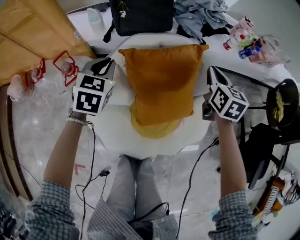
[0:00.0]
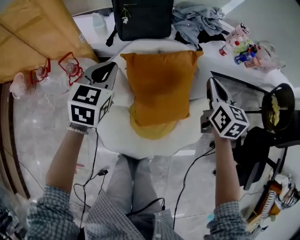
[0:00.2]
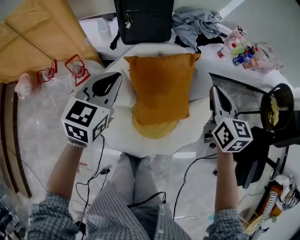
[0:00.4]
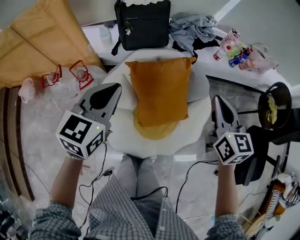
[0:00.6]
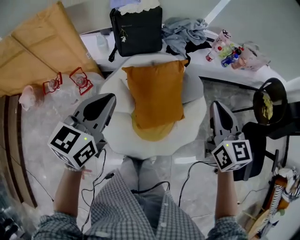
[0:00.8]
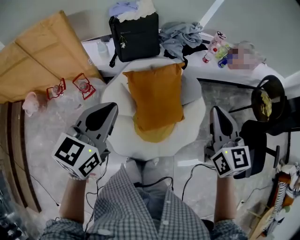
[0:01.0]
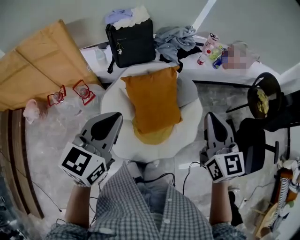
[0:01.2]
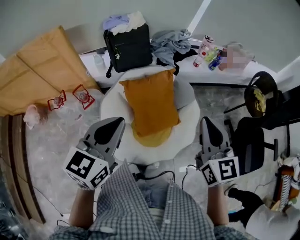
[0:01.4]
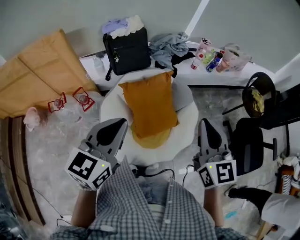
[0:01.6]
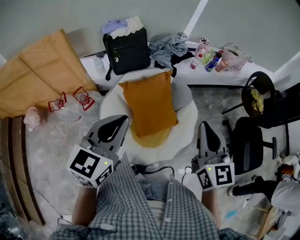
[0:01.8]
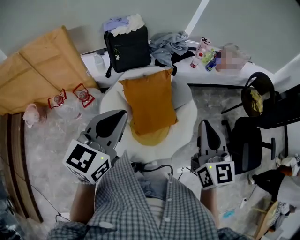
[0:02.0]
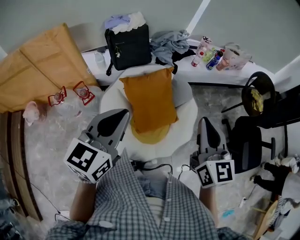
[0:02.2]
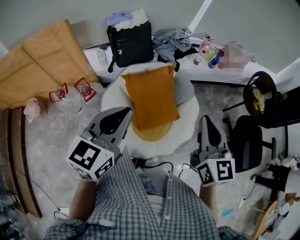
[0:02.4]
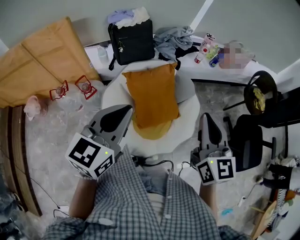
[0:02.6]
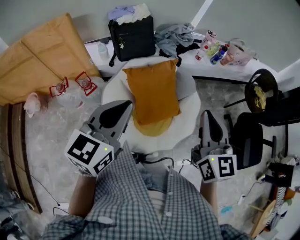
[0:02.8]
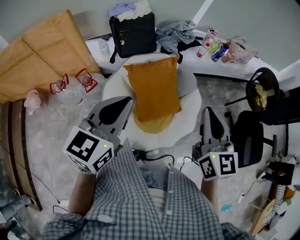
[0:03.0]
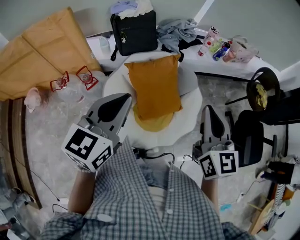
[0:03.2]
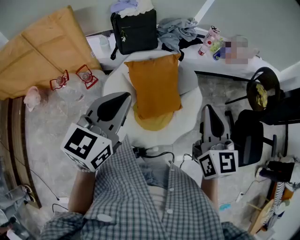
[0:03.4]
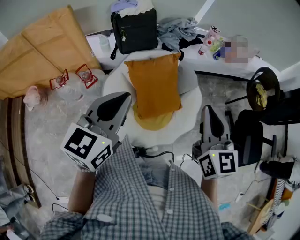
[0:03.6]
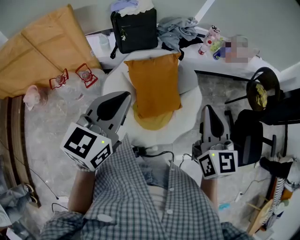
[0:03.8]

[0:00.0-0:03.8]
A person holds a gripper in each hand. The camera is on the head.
0:00.0 to 0:01.2: Both grippers move upward and backward, some 40 cm. The right gripper changes its angle by some 20 degrees; the left gripper turns by about 30 degrees.
0:01.2 to 0:02.6: The right gripper shifts approximately 5 cm backward. Meanwhile the left gripper ends up some 5 cm from where it was.
0:02.6 to 0:03.8: Both grippers stay about where they are.

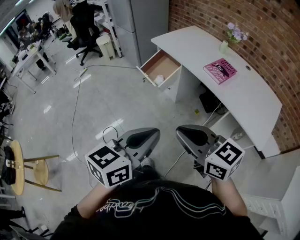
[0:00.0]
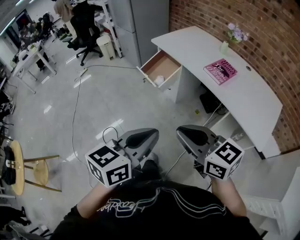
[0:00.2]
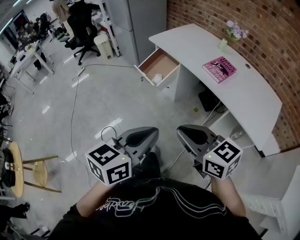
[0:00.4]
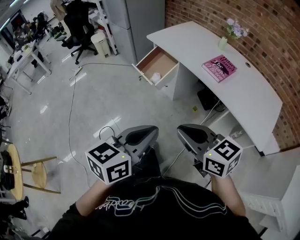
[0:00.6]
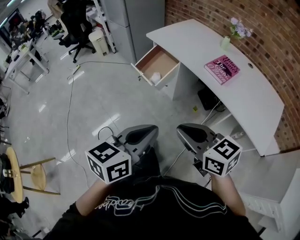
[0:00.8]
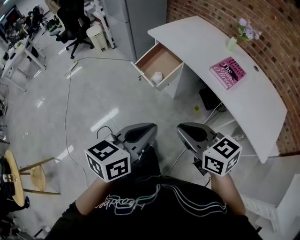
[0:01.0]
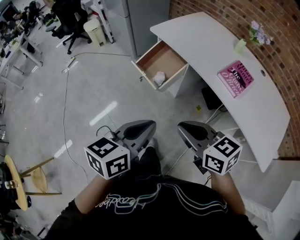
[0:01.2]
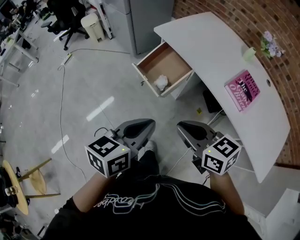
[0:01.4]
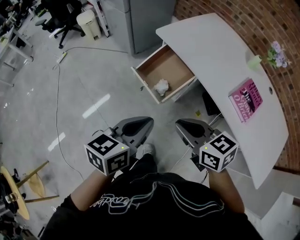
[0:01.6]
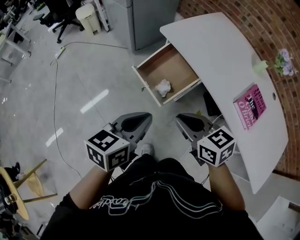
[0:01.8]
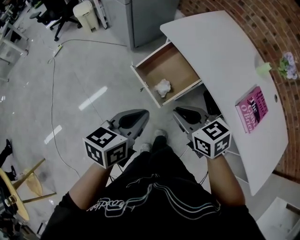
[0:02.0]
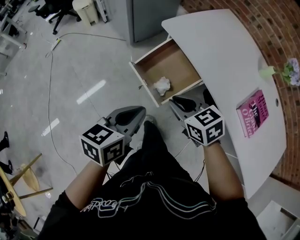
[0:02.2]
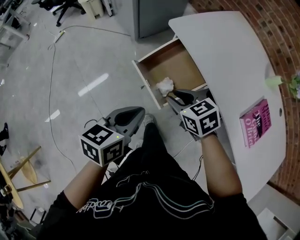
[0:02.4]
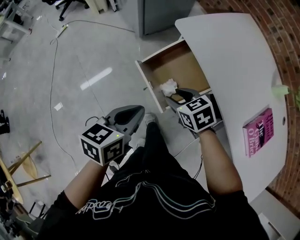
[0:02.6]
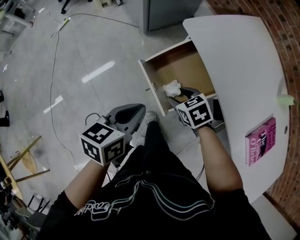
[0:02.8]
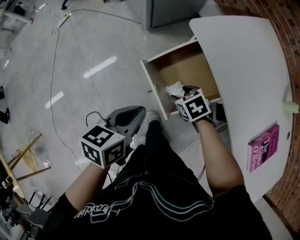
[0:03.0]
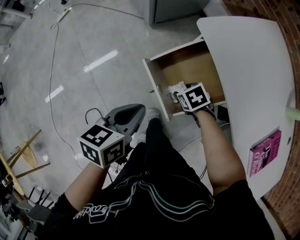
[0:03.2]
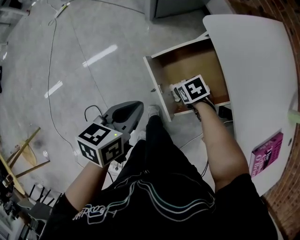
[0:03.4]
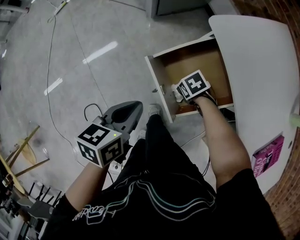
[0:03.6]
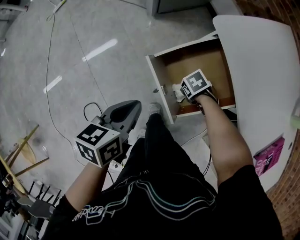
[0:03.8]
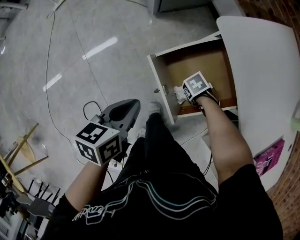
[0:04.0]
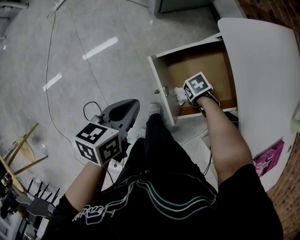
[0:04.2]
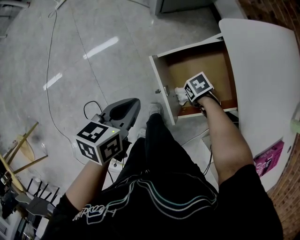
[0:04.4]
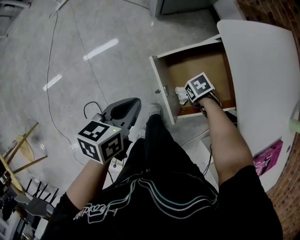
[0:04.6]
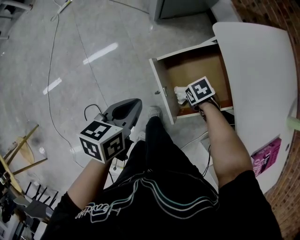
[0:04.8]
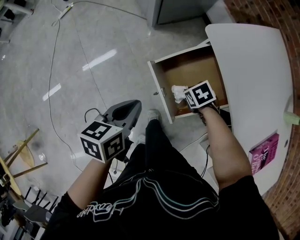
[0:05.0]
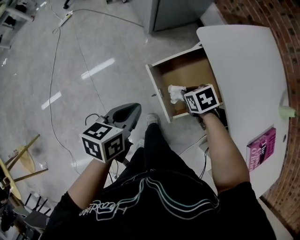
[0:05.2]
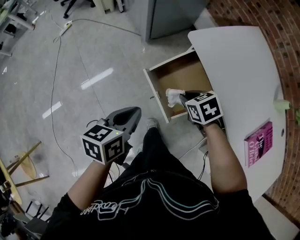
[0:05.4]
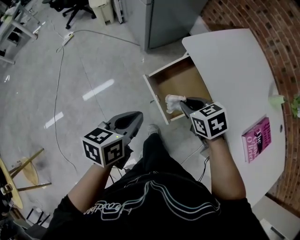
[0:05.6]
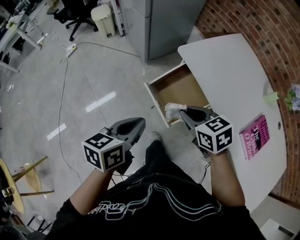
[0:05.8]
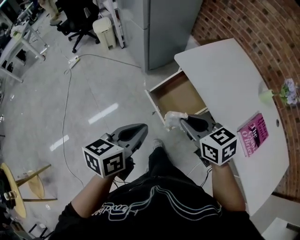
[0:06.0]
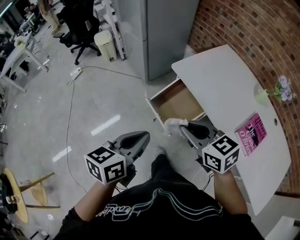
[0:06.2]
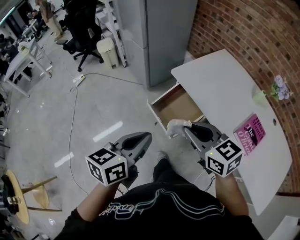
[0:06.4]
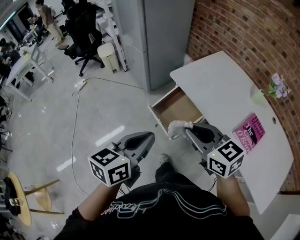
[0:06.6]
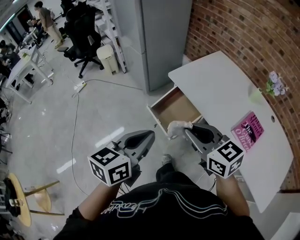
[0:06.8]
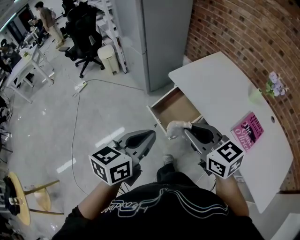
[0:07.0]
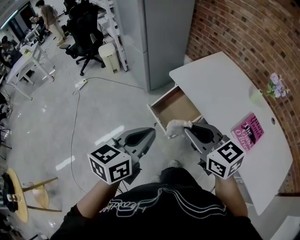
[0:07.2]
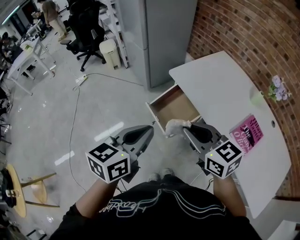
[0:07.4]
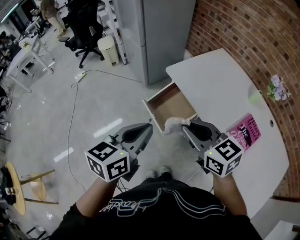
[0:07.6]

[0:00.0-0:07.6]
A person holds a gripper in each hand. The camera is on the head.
0:00.0 to 0:01.6: The two grippers travel together, forward, approximately 40 cm. The right gripper turns by roughly 20 degrees.
0:01.6 to 0:03.0: The right gripper shifts approximately 40 cm downward and forward, angles its fingers downward, by about 40 degrees, and opens up. The left gripper goes some 25 cm forward and downward, and swivels about 20 degrees.
0:03.0 to 0:04.6: The left gripper shifts roughly 5 cm downward. The right gripper travels downward by some 15 cm, turns by roughly 30 degrees, and closes up.
0:04.6 to 0:06.0: The left gripper travels upward by roughly 25 cm, and rotates roughly 20 degrees. Meanwhile the right gripper goes about 50 cm upward, and angles its fingers upward, by roughly 40 degrees.
0:06.0 to 0:07.6: The left gripper heads upward and to the right, covering approximately 15 cm, while the right gripper shifts approximately 15 cm upward, backward and to the right.

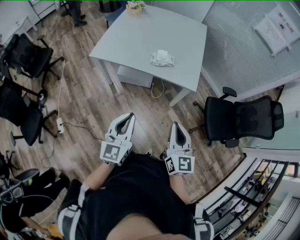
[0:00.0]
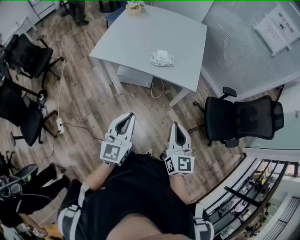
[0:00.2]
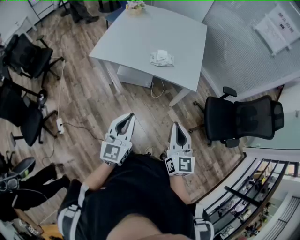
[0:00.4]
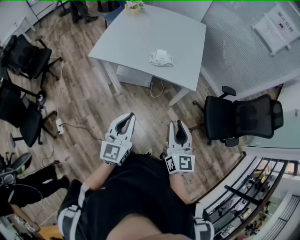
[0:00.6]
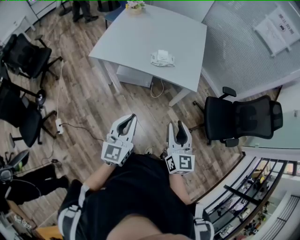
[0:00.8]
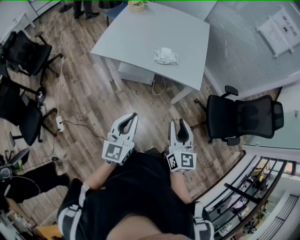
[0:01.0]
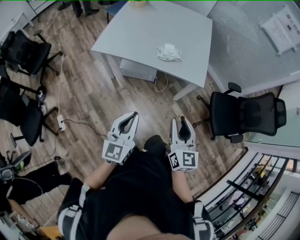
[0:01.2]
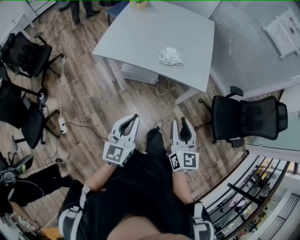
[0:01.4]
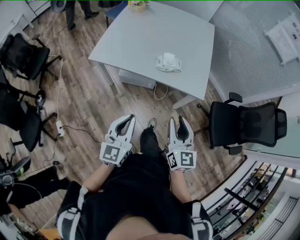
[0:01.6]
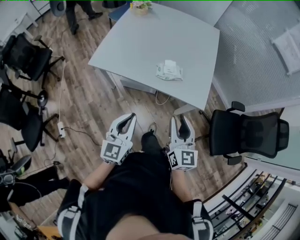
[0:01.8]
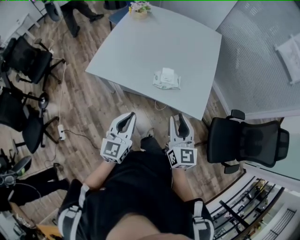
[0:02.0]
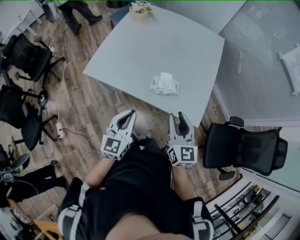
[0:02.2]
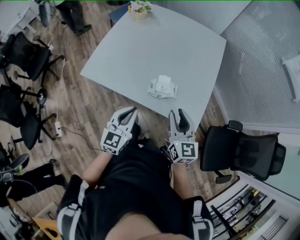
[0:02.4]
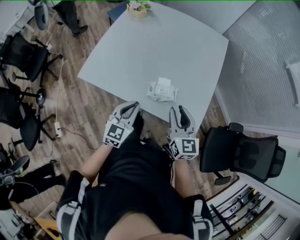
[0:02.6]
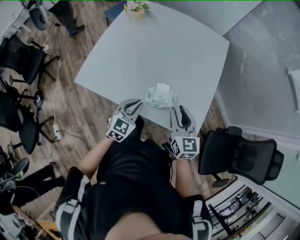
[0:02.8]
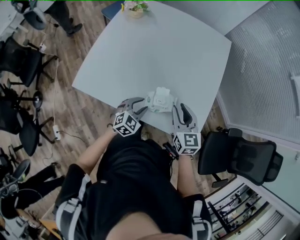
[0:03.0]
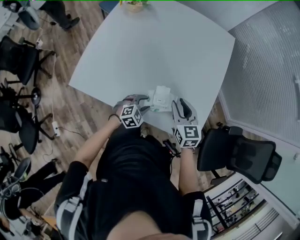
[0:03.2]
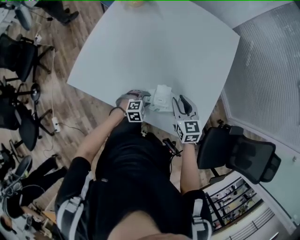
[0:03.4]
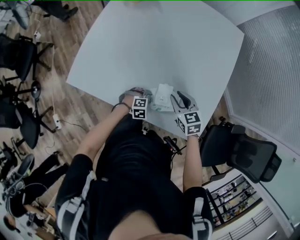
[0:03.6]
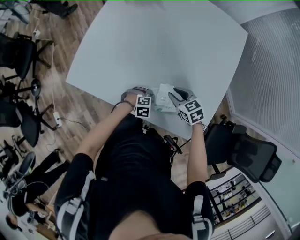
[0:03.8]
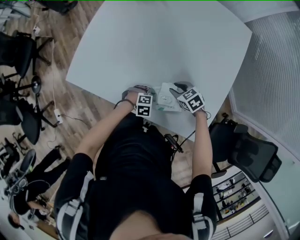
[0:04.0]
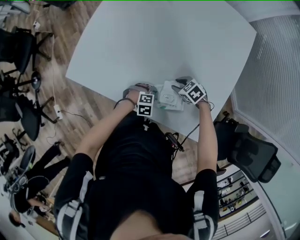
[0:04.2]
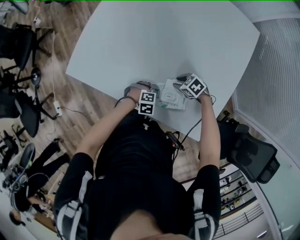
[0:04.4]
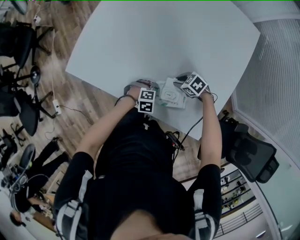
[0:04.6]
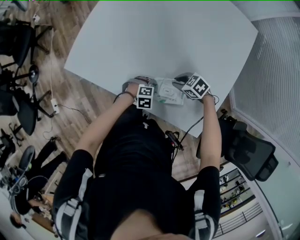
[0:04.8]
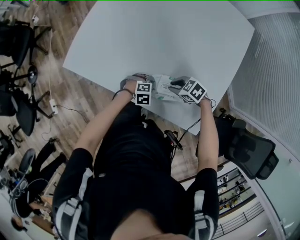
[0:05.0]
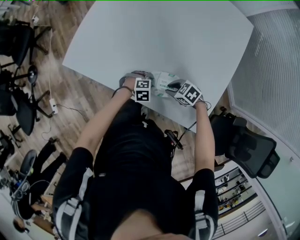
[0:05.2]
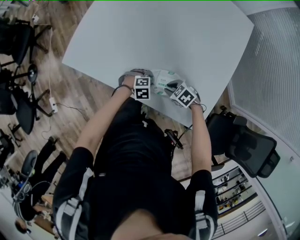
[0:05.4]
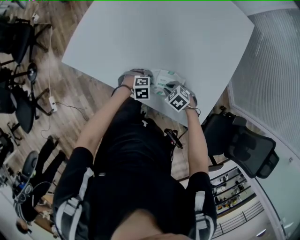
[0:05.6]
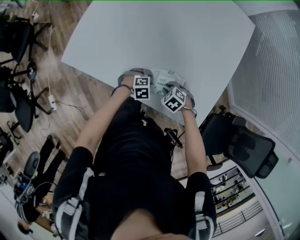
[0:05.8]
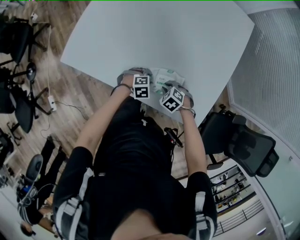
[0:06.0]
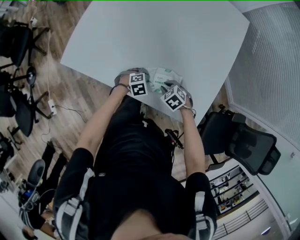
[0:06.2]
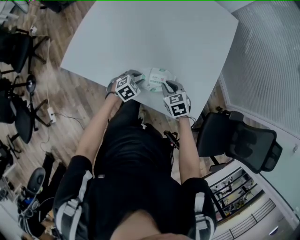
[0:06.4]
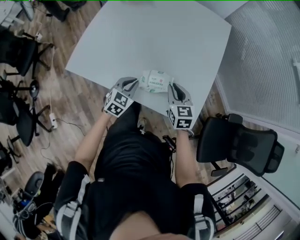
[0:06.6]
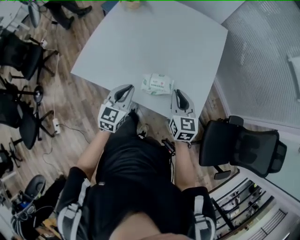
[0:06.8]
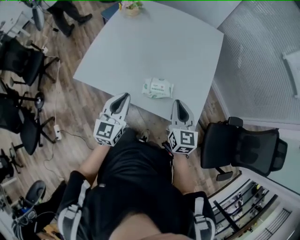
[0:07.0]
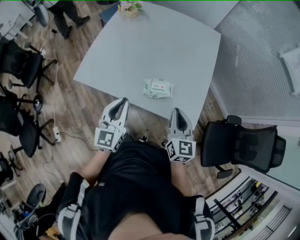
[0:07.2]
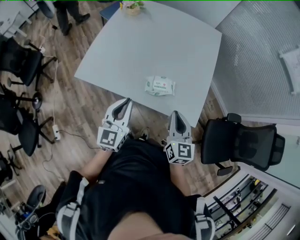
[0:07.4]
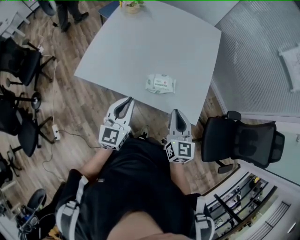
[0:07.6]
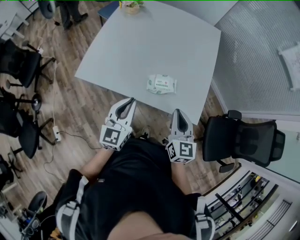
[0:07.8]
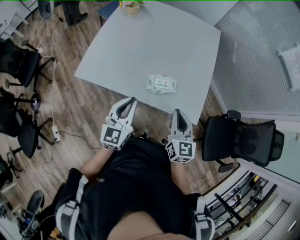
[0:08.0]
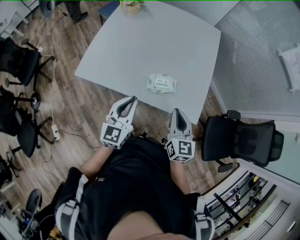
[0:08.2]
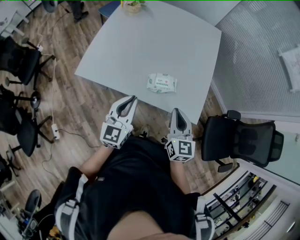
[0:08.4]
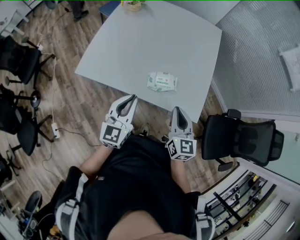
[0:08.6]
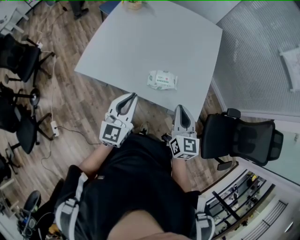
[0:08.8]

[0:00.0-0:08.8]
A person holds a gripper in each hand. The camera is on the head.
0:00.0 to 0:01.4: The right gripper shifts approximately 10 cm to the left and forward, and opens, while the left gripper travels to the left by roughly 5 cm.
0:01.4 to 0:03.0: The pair of grippers is taken forward, about 50 cm. The right gripper changes its angle by some 20 degrees. The left gripper goes about 25 cm downward, angles its fingers downward, by roughly 40 degrees, and opens its fingers.
0:03.0 to 0:04.4: The right gripper shifts approximately 30 cm downward, and points its fingers some 40 degrees further downward. Meanwhile the left gripper travels downward by roughly 20 cm, and turns by some 40 degrees.
0:04.4 to 0:05.8: The right gripper ends up about 10 cm from where it was.
0:05.8 to 0:07.4: The grippers both shift upward by about 40 cm. The right gripper tips its fingers upward by some 60 degrees; the left gripper angles its fingers upward, by some 60 degrees, and closes its fingers.
0:07.4 to 0:08.8: There are only small adjustments of the grippers.

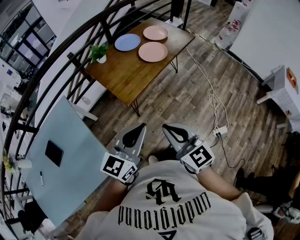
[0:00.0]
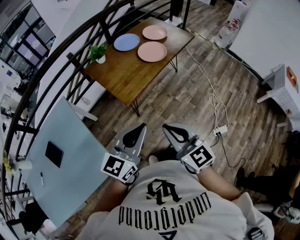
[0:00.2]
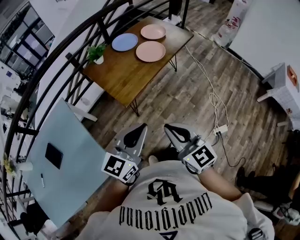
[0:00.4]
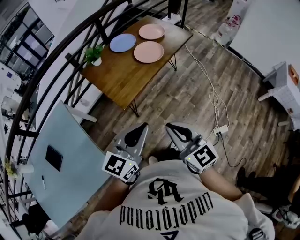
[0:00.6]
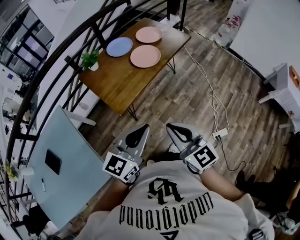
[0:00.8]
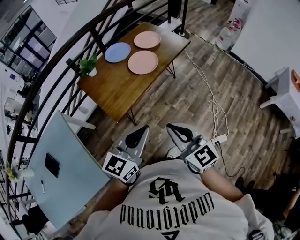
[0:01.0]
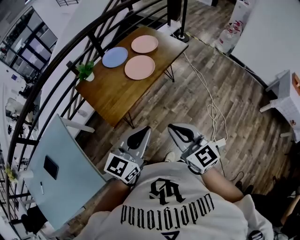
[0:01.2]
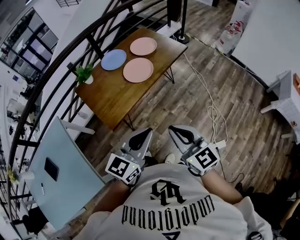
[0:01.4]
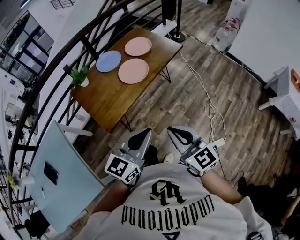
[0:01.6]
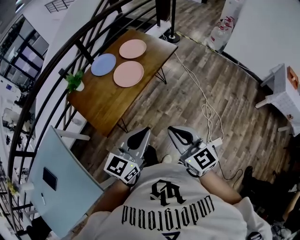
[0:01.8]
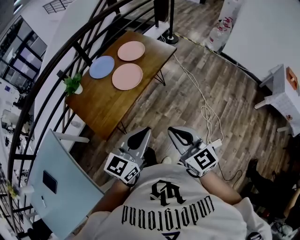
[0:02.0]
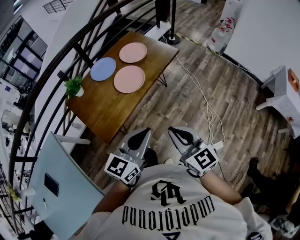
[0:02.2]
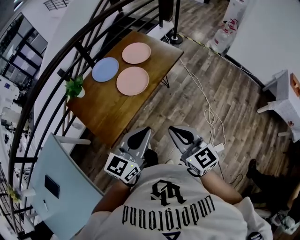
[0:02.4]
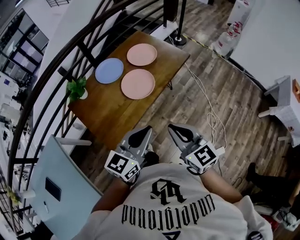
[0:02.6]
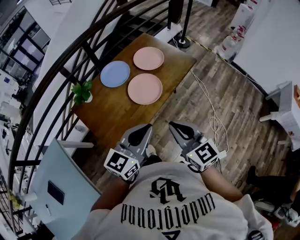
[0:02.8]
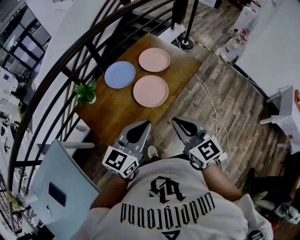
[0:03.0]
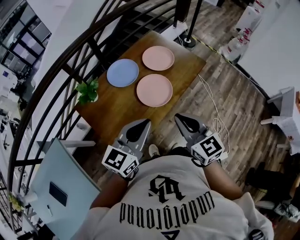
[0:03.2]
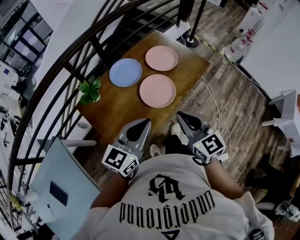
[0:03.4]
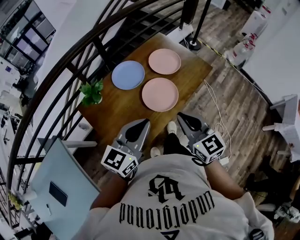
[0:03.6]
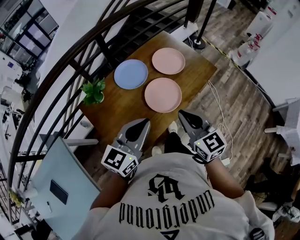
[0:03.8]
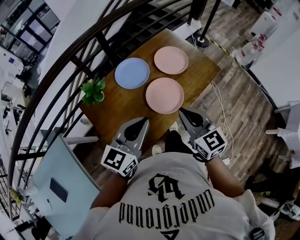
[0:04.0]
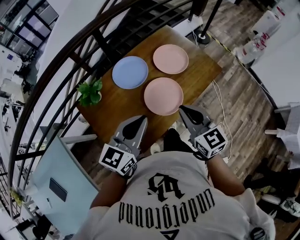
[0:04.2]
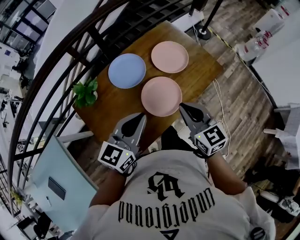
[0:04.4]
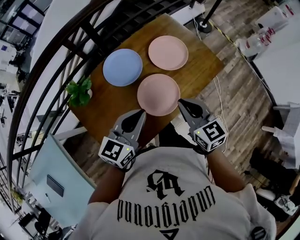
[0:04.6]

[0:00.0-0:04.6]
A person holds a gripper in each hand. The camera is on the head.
0:00.0 to 0:01.6: Both grippers move to the right and forward, approximately 25 cm.
0:01.6 to 0:03.0: Both grippers travel together forward and to the left, roughly 30 cm.
0:03.0 to 0:04.6: Both grippers travel together forward and downward, roughly 25 cm.
